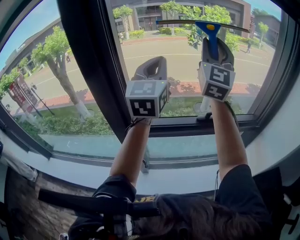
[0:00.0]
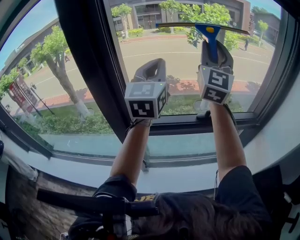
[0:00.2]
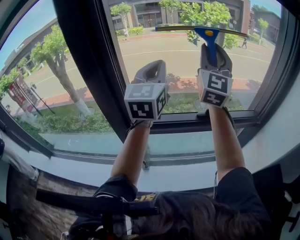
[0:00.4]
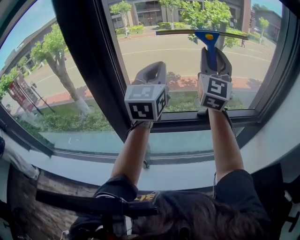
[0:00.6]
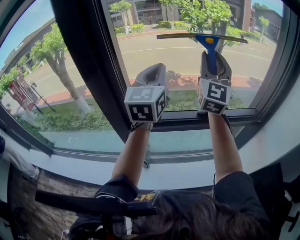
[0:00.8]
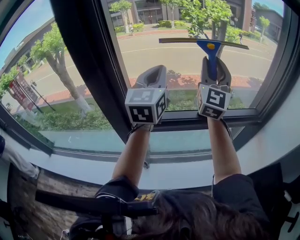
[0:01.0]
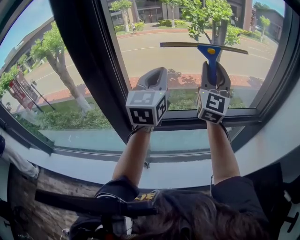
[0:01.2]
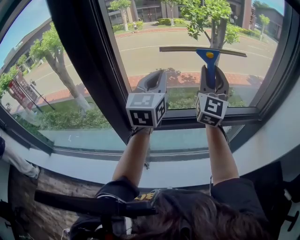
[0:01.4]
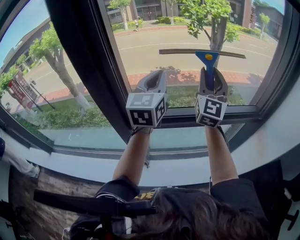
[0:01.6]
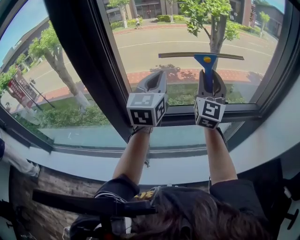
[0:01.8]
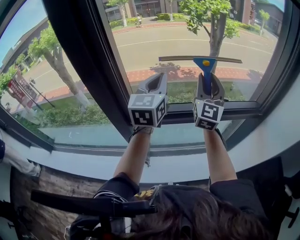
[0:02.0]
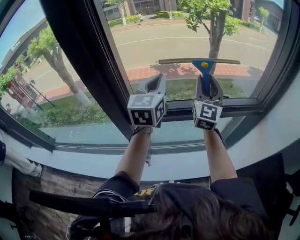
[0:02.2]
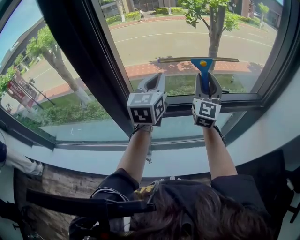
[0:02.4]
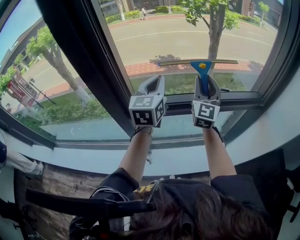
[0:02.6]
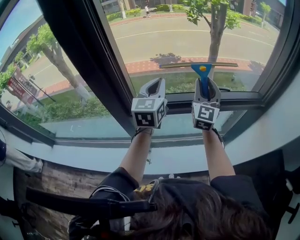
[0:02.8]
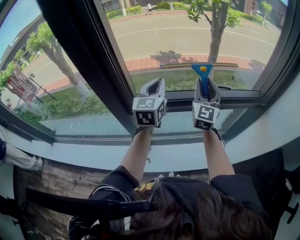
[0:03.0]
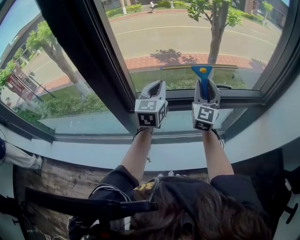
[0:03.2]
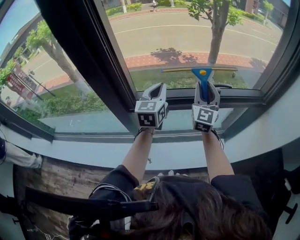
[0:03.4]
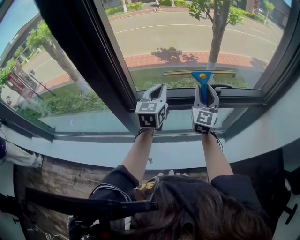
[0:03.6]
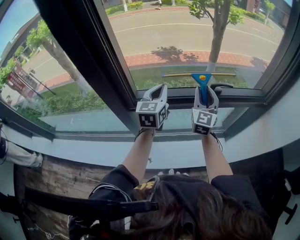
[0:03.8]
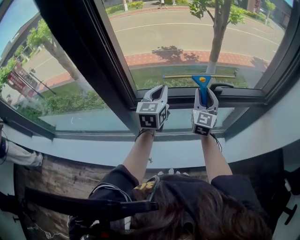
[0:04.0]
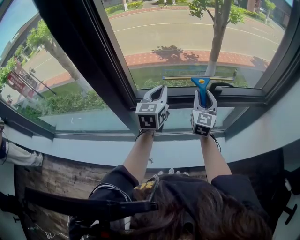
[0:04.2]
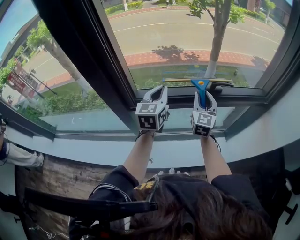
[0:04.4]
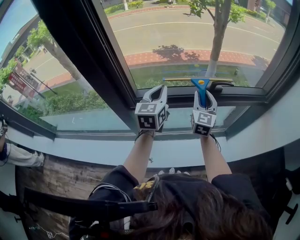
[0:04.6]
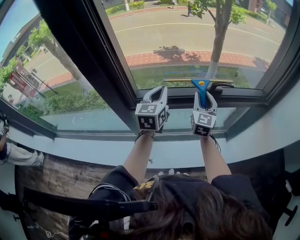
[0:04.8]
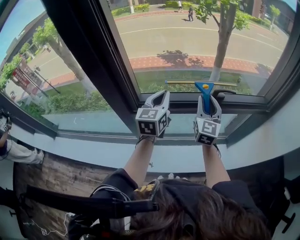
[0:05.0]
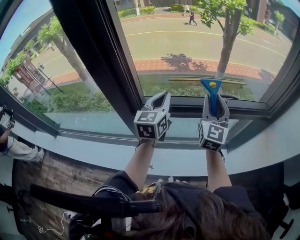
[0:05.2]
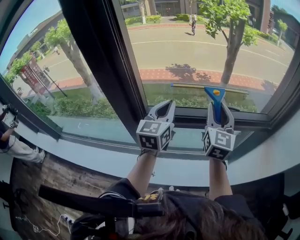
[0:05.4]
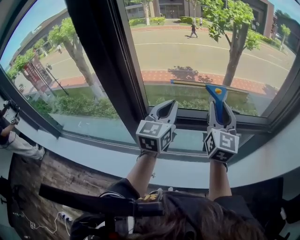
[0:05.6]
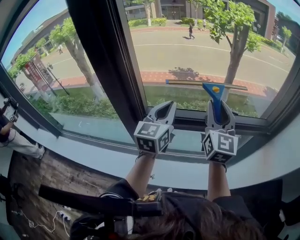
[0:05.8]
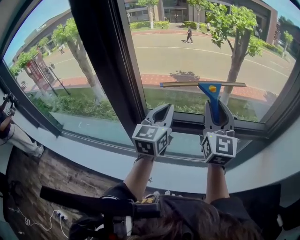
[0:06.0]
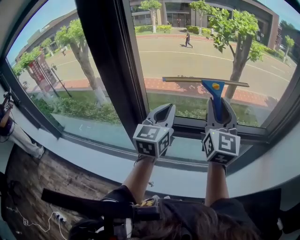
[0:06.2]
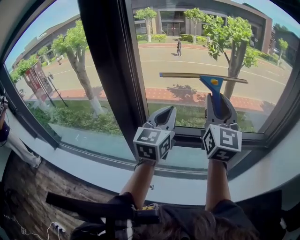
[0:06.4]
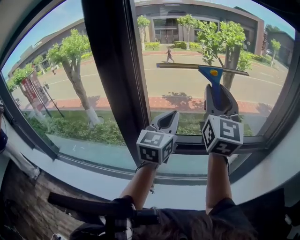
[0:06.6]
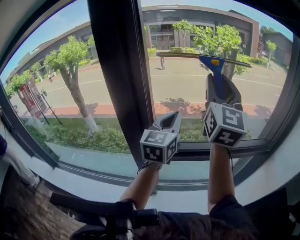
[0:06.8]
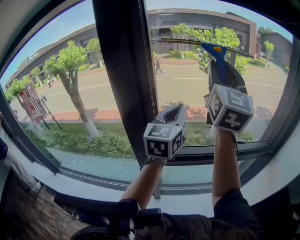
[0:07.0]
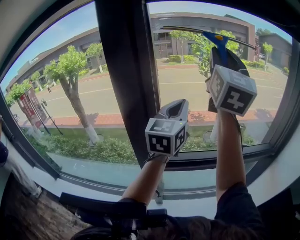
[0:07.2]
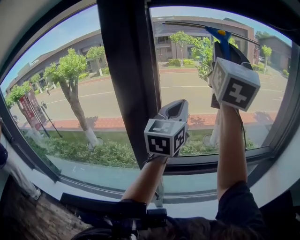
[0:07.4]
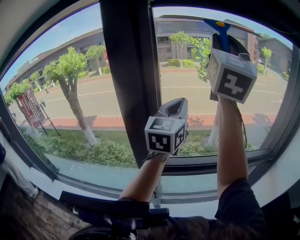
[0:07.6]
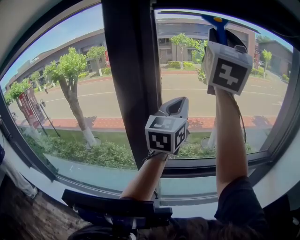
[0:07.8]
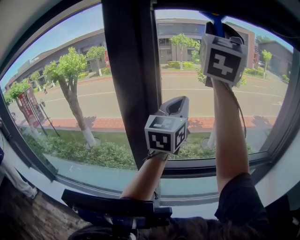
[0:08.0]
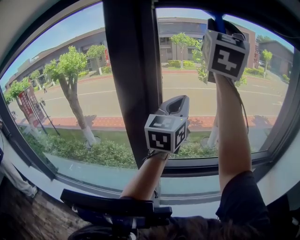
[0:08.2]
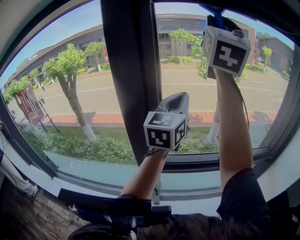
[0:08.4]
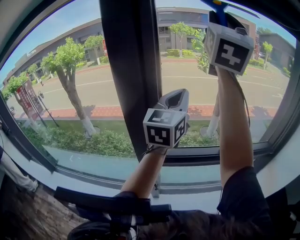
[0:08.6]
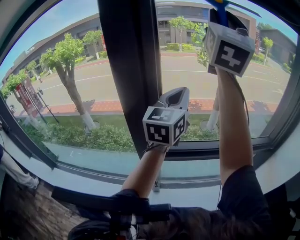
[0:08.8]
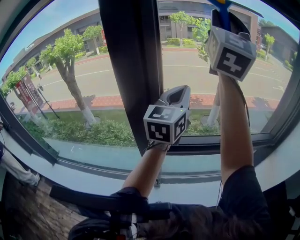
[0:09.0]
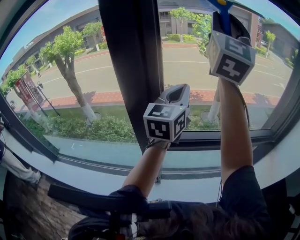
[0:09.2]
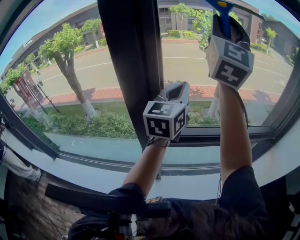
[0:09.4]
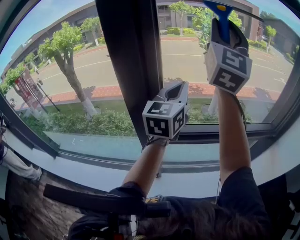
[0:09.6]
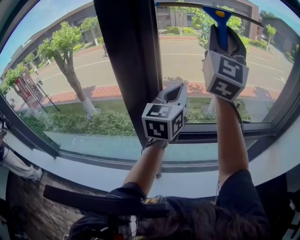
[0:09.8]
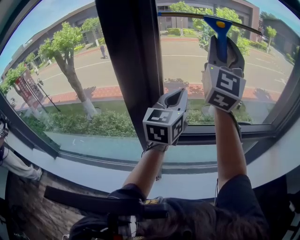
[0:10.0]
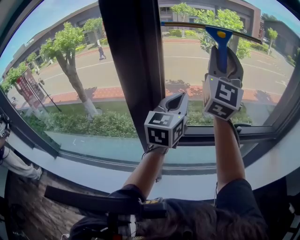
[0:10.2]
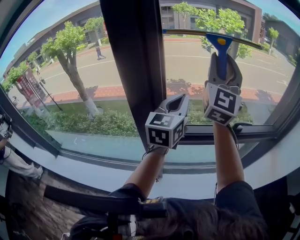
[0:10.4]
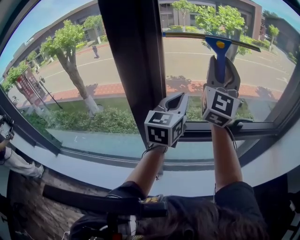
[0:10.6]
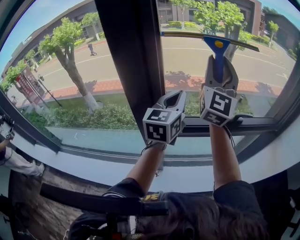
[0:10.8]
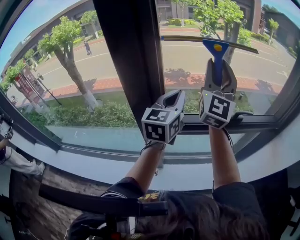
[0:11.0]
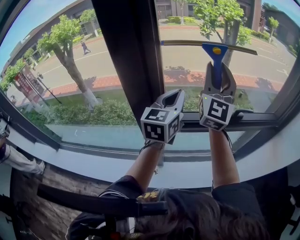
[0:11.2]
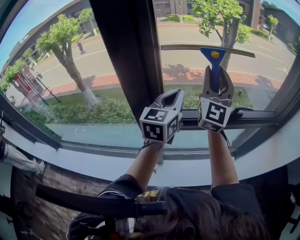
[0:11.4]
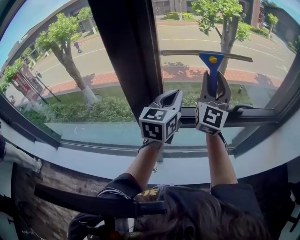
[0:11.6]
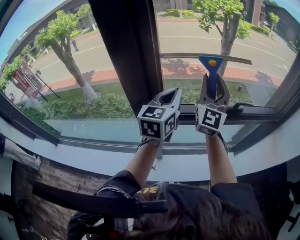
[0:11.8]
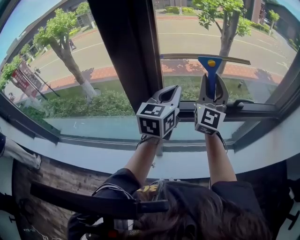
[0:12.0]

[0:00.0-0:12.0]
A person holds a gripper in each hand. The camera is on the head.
0.0 to 1.6 s: The left gripper goes some 10 cm downward, while the right gripper heads downward, covering about 15 cm.
1.6 to 3.0 s: The grippers both shift downward by approximately 15 cm.
3.0 to 4.4 s: The left gripper heads downward, covering approximately 5 cm, while the right gripper goes about 10 cm downward.
4.4 to 6.0 s: The right gripper goes about 20 cm upward, and changes its angle by roughly 20 degrees. Meanwhile the left gripper moves upward, some 10 cm.
6.0 to 7.6 s: The right gripper shifts approximately 35 cm upward, and turns by some 30 degrees. Meanwhile the left gripper heads upward and to the left, covering about 20 cm.
7.6 to 9.0 s: There are only small adjustments of the grippers.
9.0 to 10.4 s: The left gripper travels downward by some 5 cm; the right gripper moves downward, some 15 cm.
10.4 to 12.0 s: The right gripper shifts about 20 cm downward. Meanwhile the left gripper is displaced downward by approximately 5 cm.

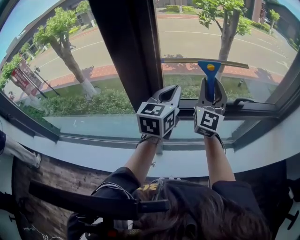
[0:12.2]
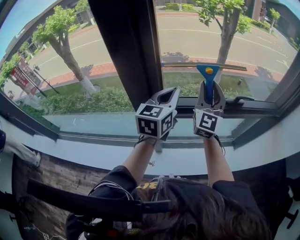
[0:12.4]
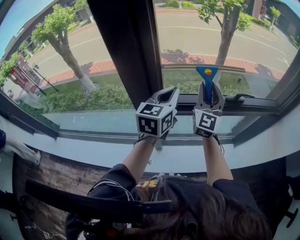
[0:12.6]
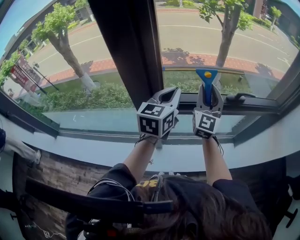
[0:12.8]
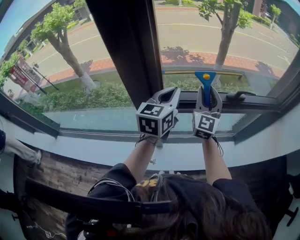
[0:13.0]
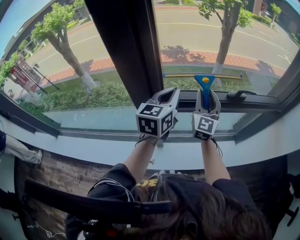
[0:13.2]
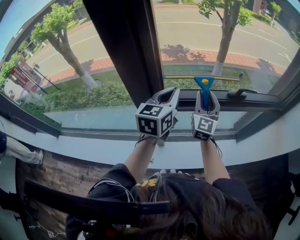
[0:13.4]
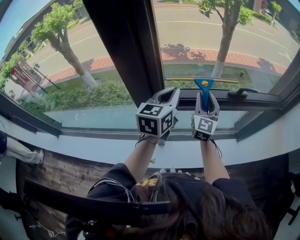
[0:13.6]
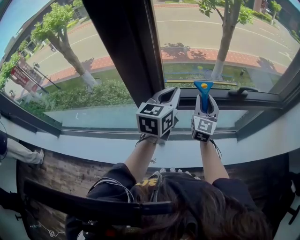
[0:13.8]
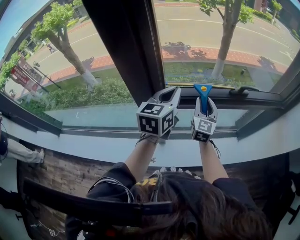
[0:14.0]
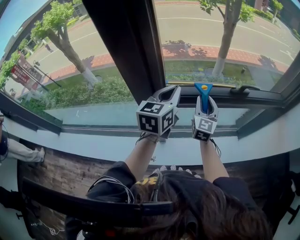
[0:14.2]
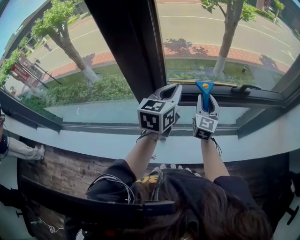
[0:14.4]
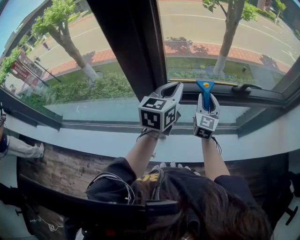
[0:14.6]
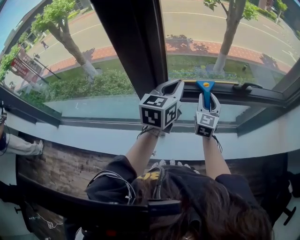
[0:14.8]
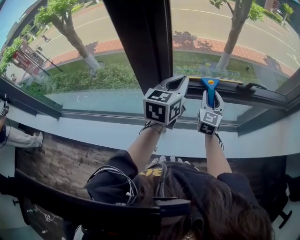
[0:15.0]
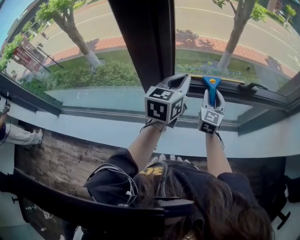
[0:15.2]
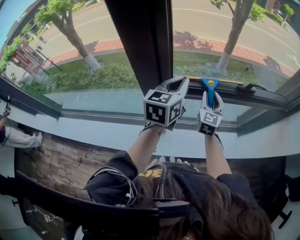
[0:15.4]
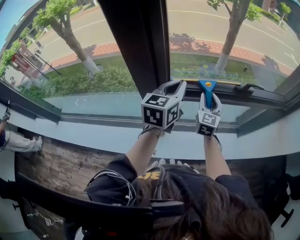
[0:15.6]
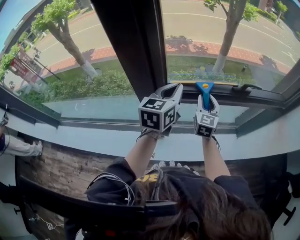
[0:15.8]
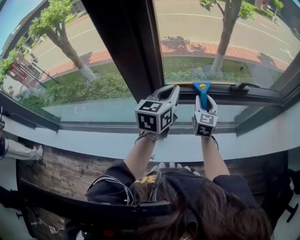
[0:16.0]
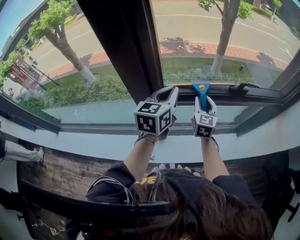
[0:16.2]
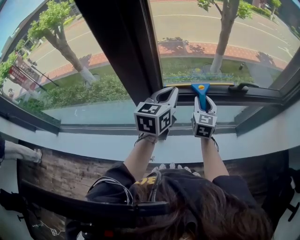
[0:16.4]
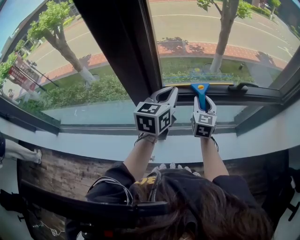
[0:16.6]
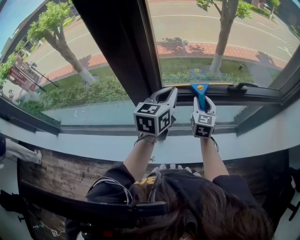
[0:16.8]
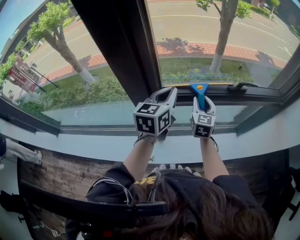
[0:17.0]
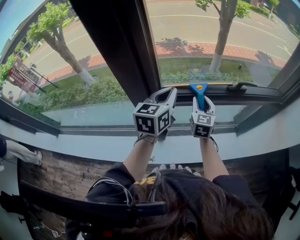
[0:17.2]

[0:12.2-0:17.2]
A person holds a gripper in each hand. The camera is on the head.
12.2 to 13.8 s: The right gripper moves downward, approximately 15 cm, and changes its angle by approximately 20 degrees, while the left gripper goes about 5 cm downward.
13.8 to 17.2 s: The grippers move only a little.

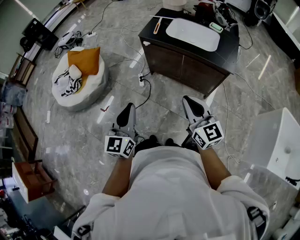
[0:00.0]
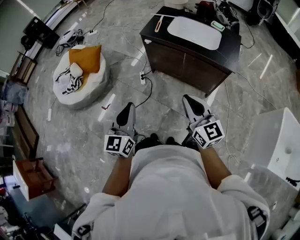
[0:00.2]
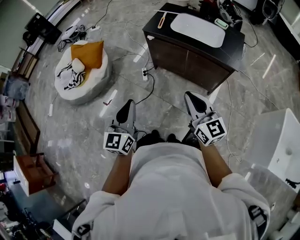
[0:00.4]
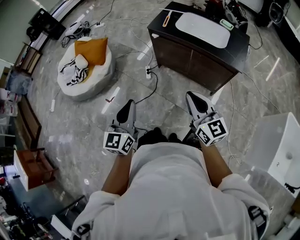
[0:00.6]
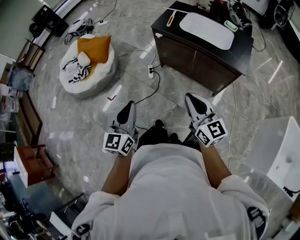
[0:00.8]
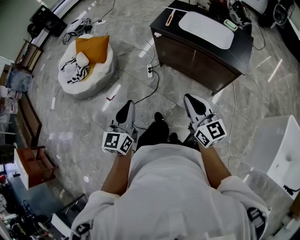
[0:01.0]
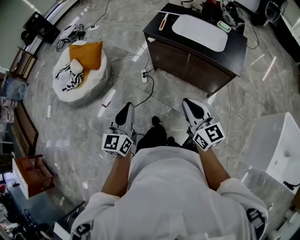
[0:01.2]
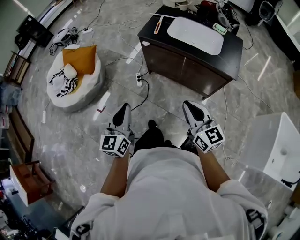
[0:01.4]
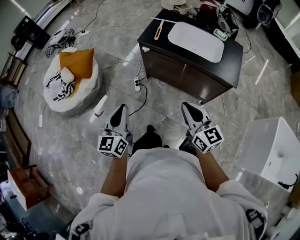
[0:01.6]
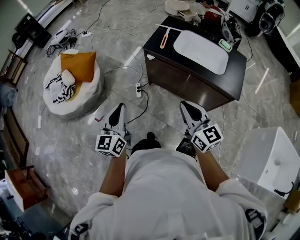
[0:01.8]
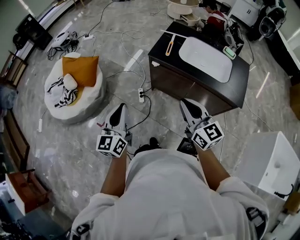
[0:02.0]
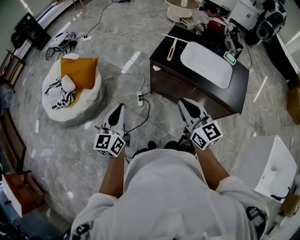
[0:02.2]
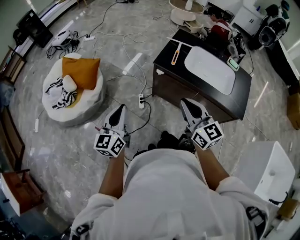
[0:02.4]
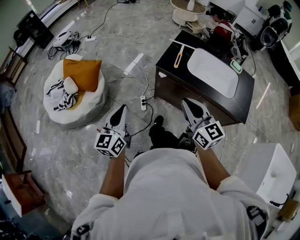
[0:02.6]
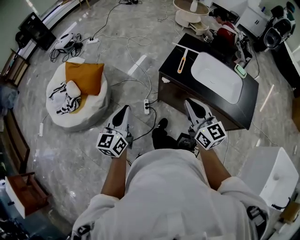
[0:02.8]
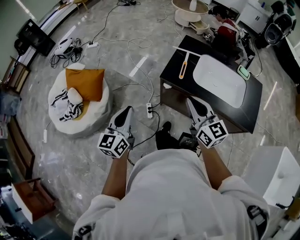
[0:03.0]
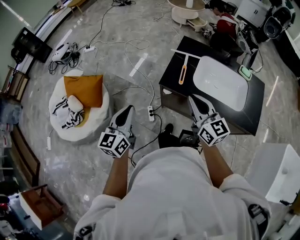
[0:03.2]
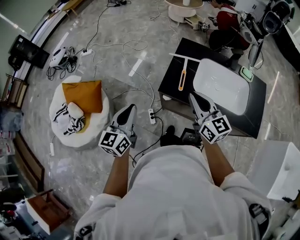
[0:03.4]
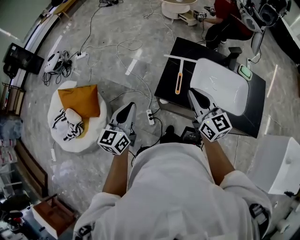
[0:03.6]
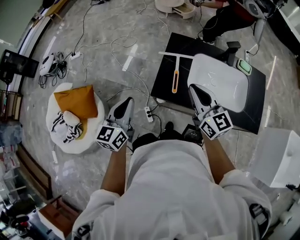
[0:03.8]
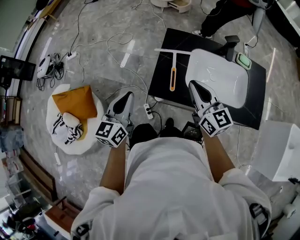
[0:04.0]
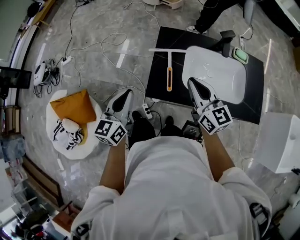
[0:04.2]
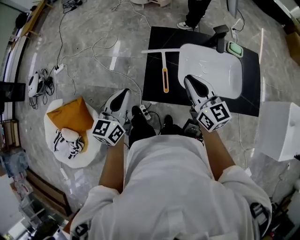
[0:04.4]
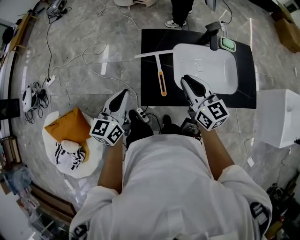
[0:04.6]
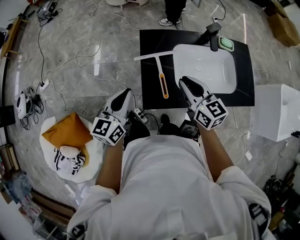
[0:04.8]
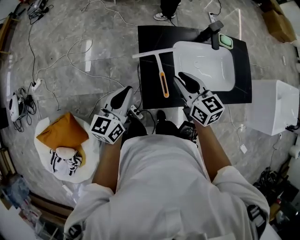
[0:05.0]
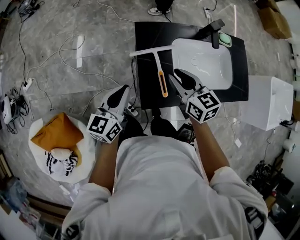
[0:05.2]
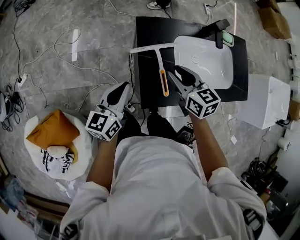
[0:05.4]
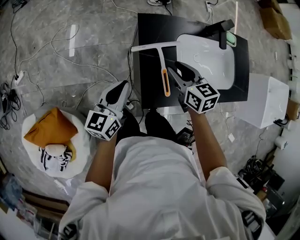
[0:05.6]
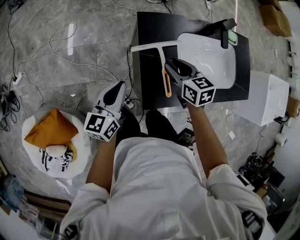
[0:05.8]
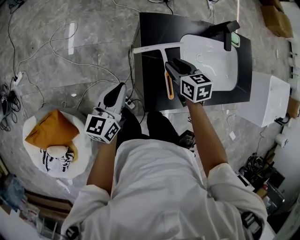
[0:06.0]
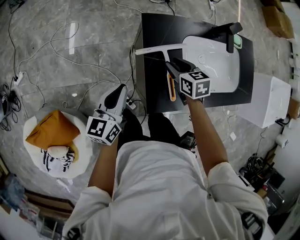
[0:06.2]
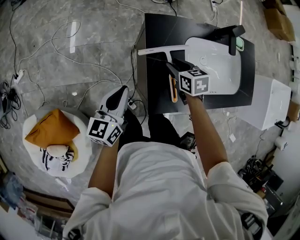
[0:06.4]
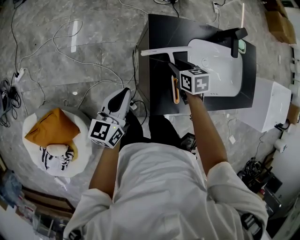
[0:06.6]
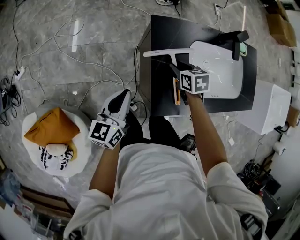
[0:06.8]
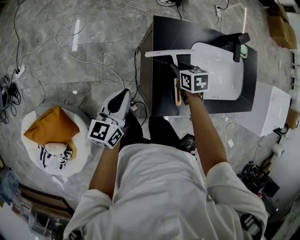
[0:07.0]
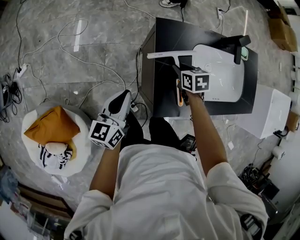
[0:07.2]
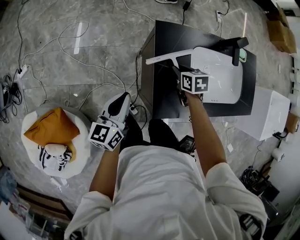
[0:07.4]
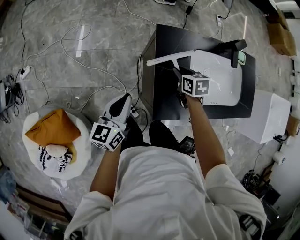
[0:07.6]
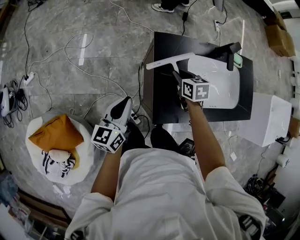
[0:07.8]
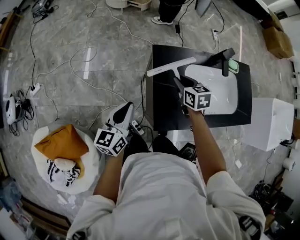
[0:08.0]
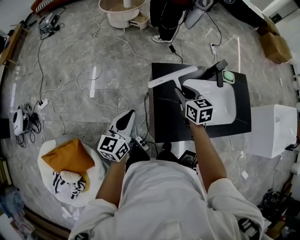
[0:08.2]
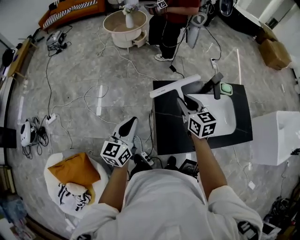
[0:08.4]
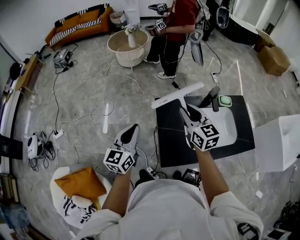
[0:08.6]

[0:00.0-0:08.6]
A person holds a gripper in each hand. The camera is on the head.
0.0 to 1.4 s: The two grippers go some 5 cm forward.
1.4 to 2.8 s: The two grippers go some 30 cm forward.
2.8 to 4.4 s: The left gripper shifts by approximately 40 cm, and rotates roughly 30 degrees; the right gripper ends up some 35 cm from where it was, and rotates about 20 degrees.
4.4 to 5.8 s: The left gripper moves forward, downward and to the left, about 20 cm, while the right gripper heads downward, forward and to the left, covering roughly 25 cm, tips its fingers downward by approximately 30 degrees, and opens its fingers.
5.8 to 7.2 s: The right gripper is displaced downward by approximately 10 cm.
7.2 to 8.6 s: The left gripper heads upward, covering approximately 20 cm, and changes its angle by approximately 20 degrees, while the right gripper moves upward, some 35 cm, and tips its fingers upward by some 50 degrees.
